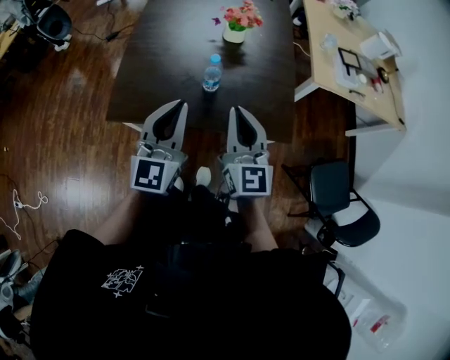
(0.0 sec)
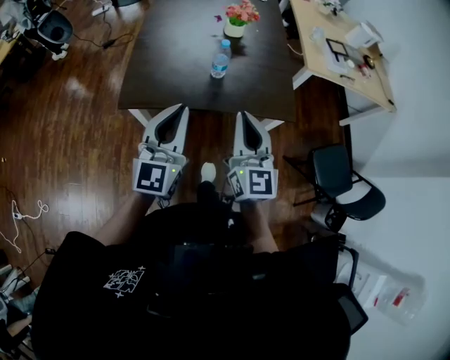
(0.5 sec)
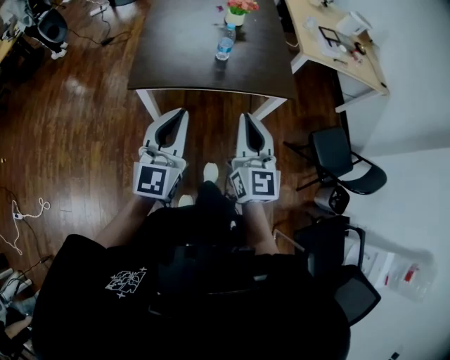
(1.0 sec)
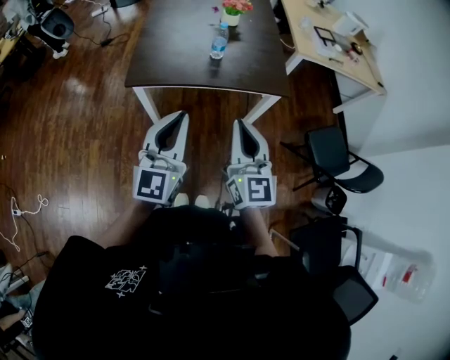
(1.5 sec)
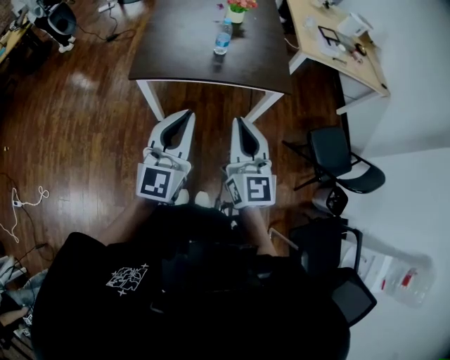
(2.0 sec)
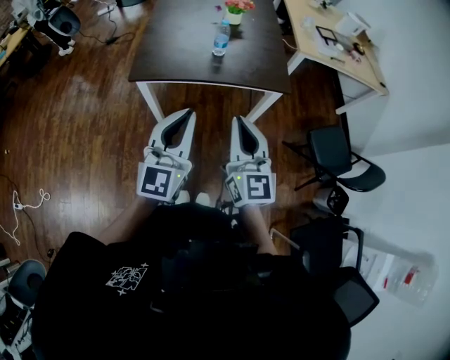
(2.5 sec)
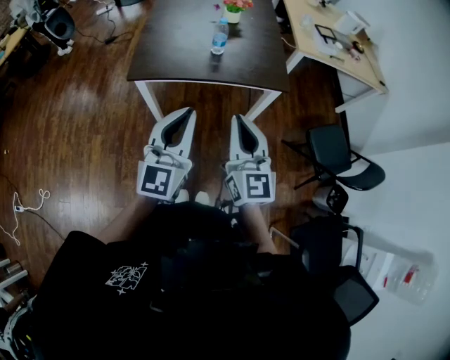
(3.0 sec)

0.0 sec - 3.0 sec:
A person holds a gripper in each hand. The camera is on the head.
0.0 sec - 1.5 sec: The grippers both shift backward by roughly 30 cm.
1.5 sec - 3.0 sec: The grippers move only a little.

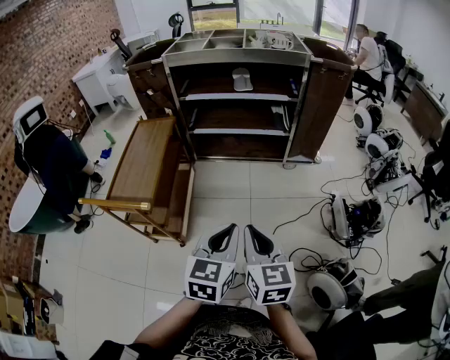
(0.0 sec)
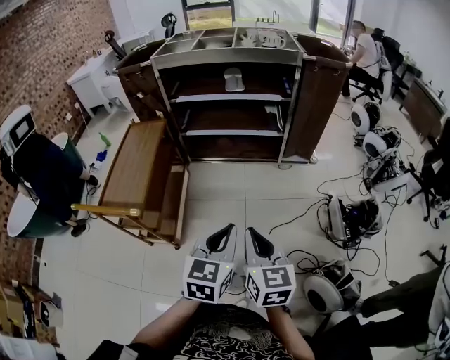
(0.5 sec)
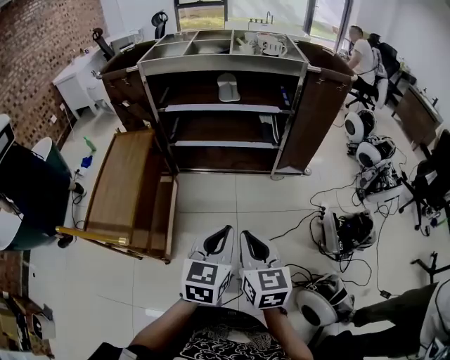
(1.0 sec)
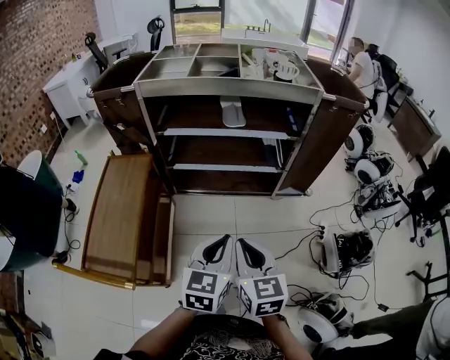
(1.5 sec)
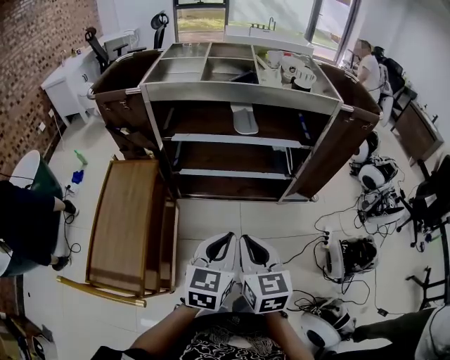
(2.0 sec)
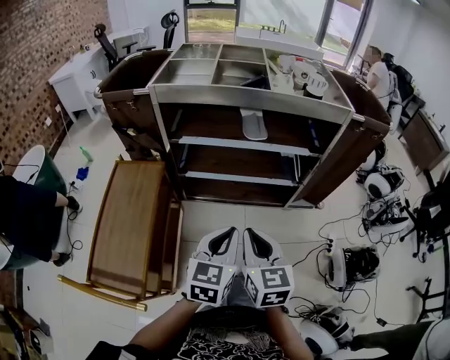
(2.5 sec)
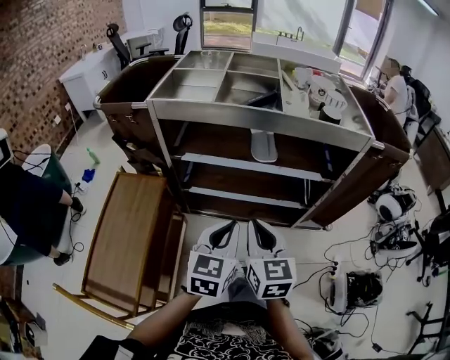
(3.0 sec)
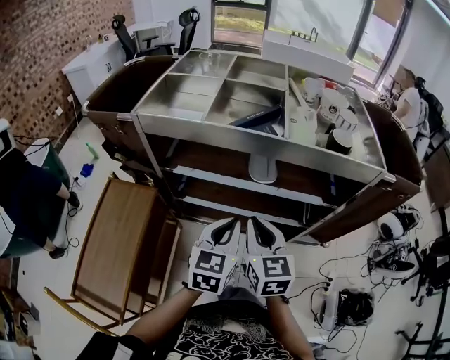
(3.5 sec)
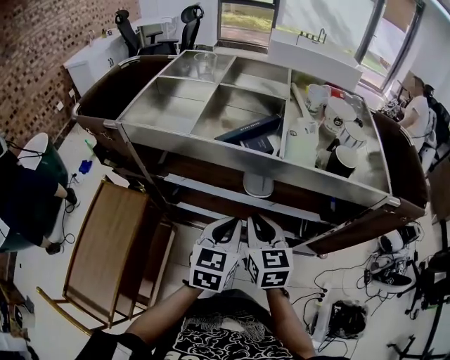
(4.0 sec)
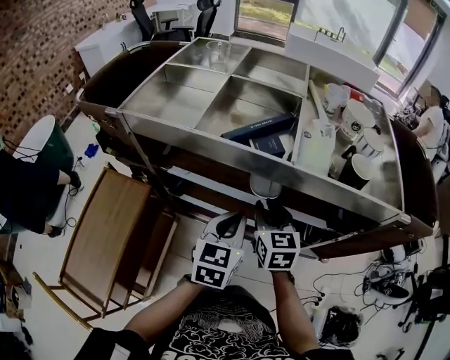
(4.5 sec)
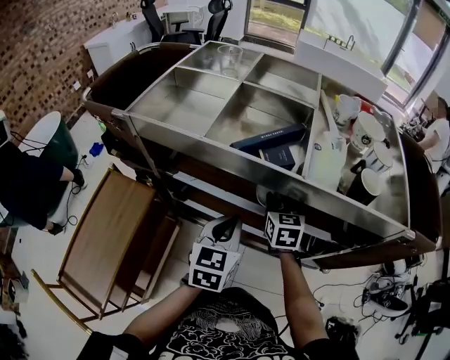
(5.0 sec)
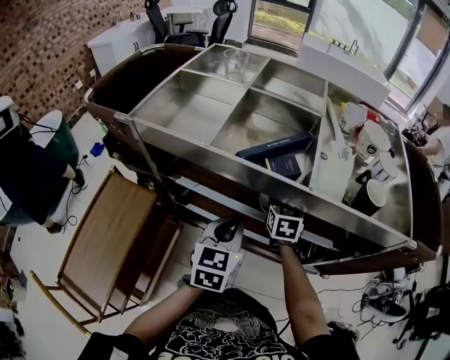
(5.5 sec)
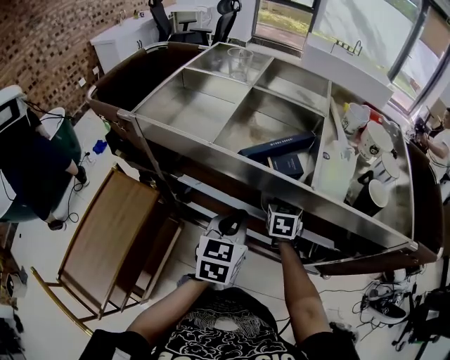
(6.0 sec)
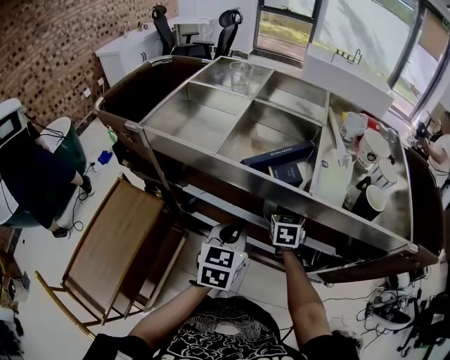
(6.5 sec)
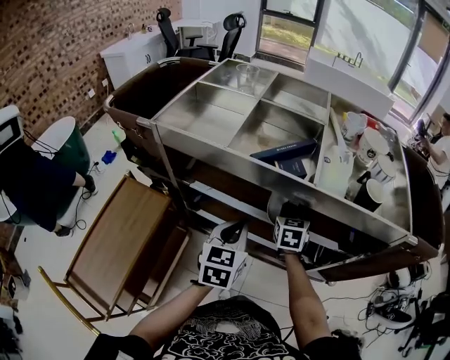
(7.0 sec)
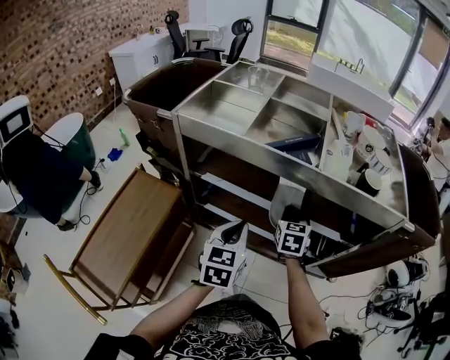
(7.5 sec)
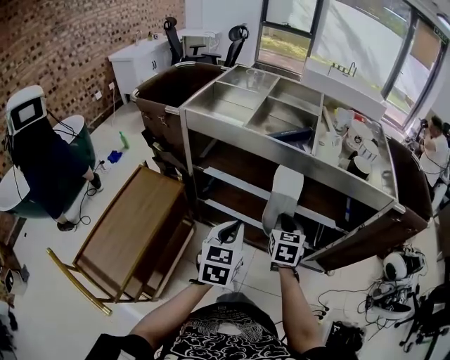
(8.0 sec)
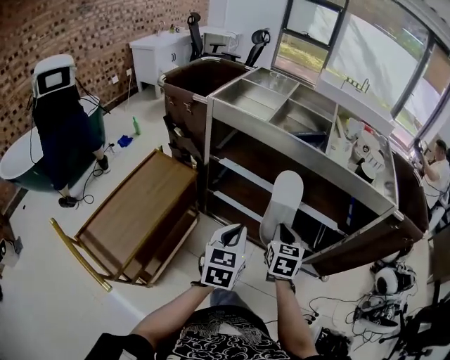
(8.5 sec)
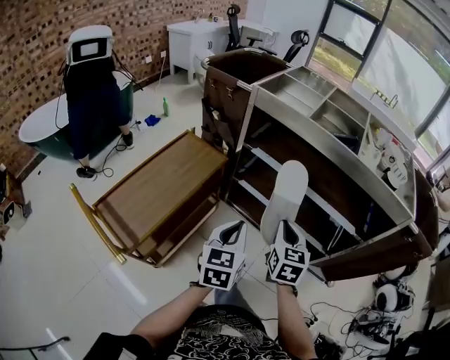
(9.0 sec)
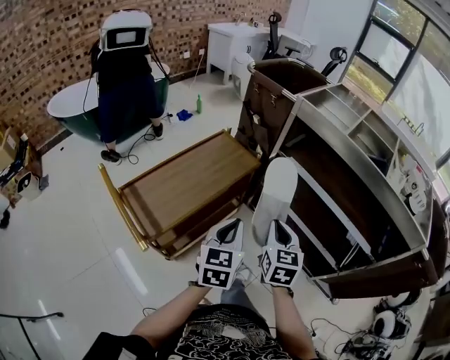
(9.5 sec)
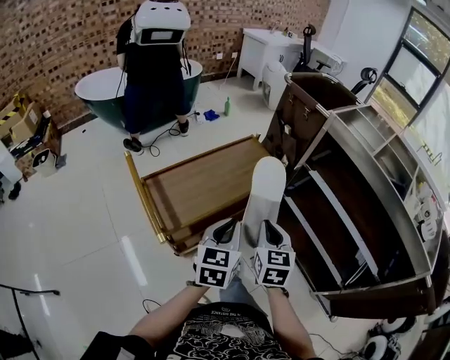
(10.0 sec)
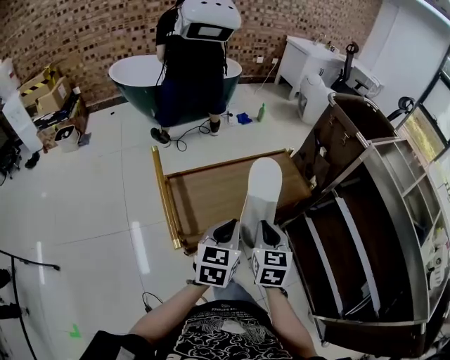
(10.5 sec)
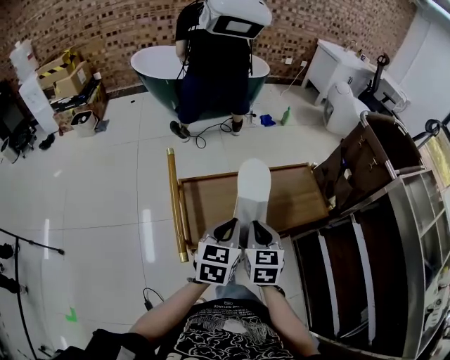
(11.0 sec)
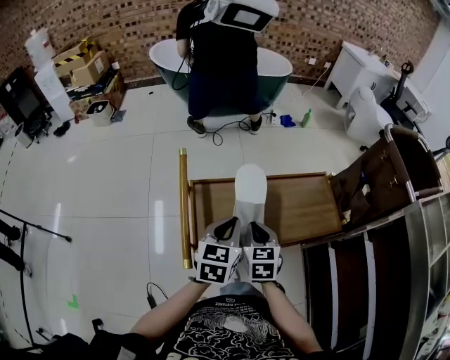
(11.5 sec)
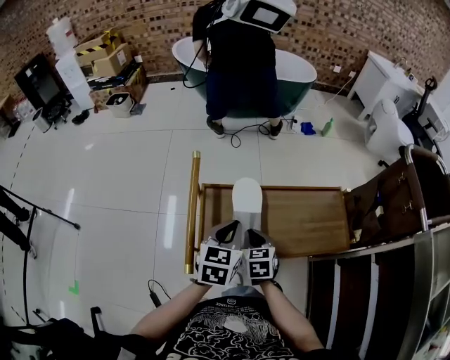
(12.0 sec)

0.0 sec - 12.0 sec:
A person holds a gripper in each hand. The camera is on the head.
0.0 sec - 2.0 sec: The two grippers go approximately 35 cm forward.
2.0 sec - 4.0 sec: Both grippers travel together forward, approximately 35 cm.
4.0 sec - 6.0 sec: The left gripper travels forward by roughly 5 cm. The right gripper heads forward and downward, covering some 25 cm, and opens and closes again.
6.0 sec - 8.0 sec: The two grippers go about 20 cm backward.
8.0 sec - 10.0 sec: The right gripper moves approximately 40 cm, and rotates some 40 degrees, while the left gripper changes place by some 35 cm, and rotates about 40 degrees.
10.0 sec - 12.0 sec: The right gripper changes place by roughly 35 cm, and changes its angle by about 50 degrees, while the left gripper ends up some 25 cm from where it was, and turns by roughly 30 degrees.

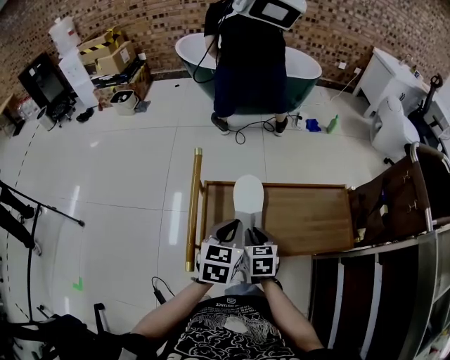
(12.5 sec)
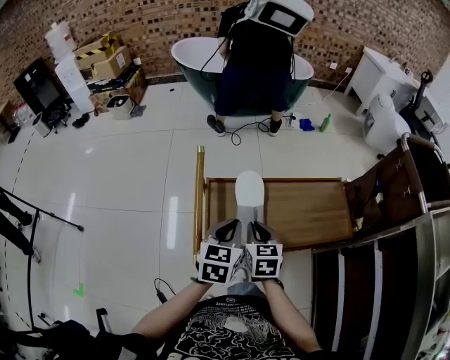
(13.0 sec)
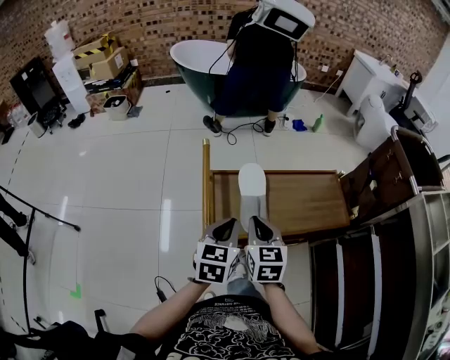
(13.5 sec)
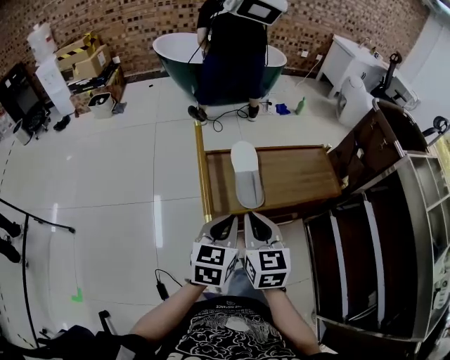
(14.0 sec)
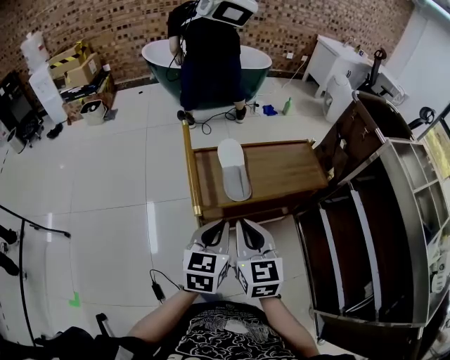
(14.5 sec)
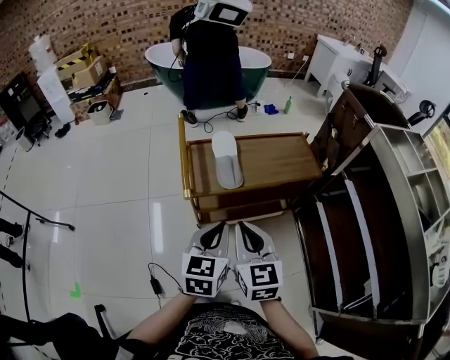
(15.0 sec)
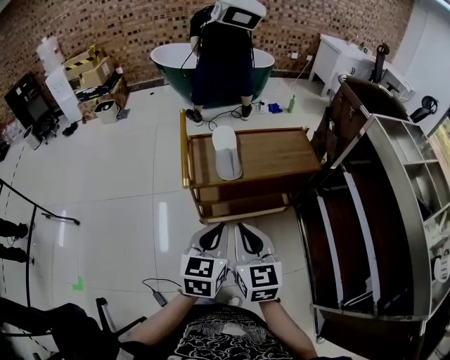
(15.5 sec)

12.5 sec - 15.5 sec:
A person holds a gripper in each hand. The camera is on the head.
12.5 sec - 14.0 sec: The right gripper shifts roughly 25 cm upward and backward, and changes its angle by roughly 20 degrees; the left gripper is displaced backward by about 15 cm.
14.0 sec - 15.5 sec: The two grippers go some 20 cm backward and to the right.

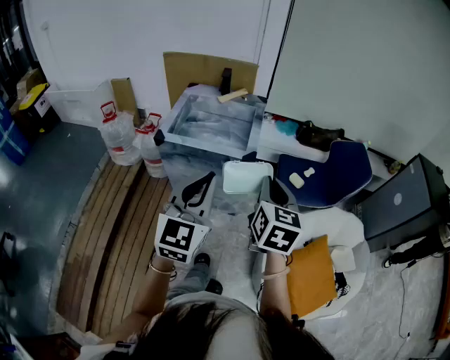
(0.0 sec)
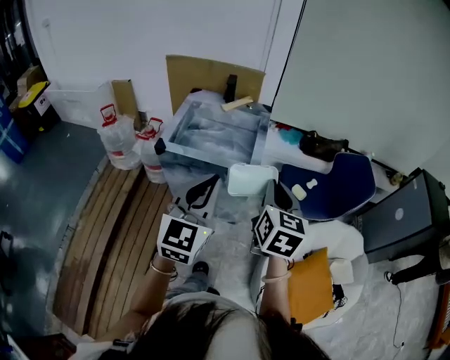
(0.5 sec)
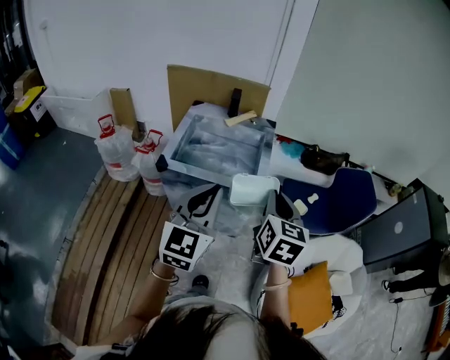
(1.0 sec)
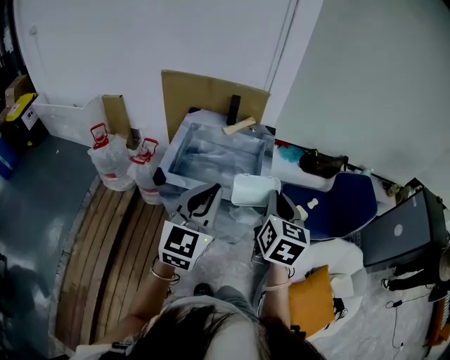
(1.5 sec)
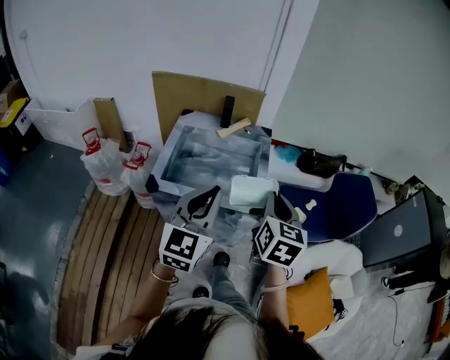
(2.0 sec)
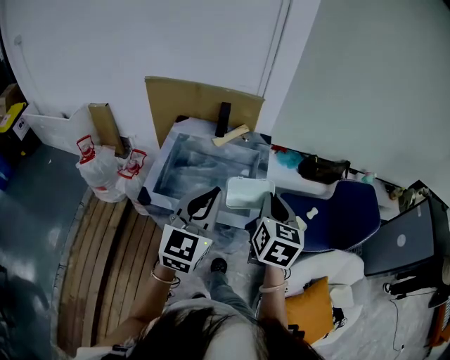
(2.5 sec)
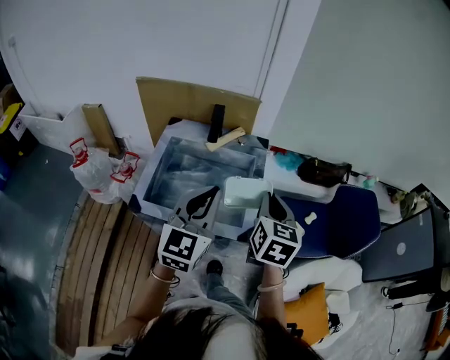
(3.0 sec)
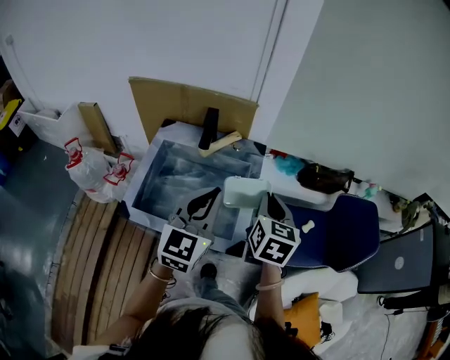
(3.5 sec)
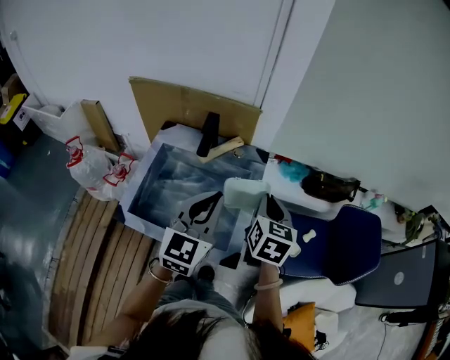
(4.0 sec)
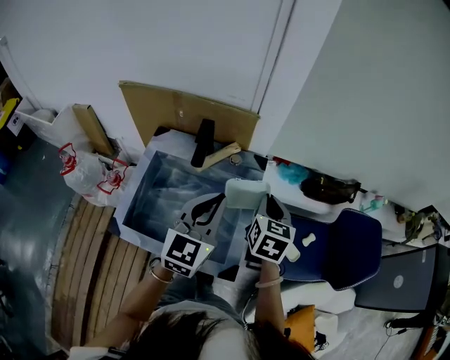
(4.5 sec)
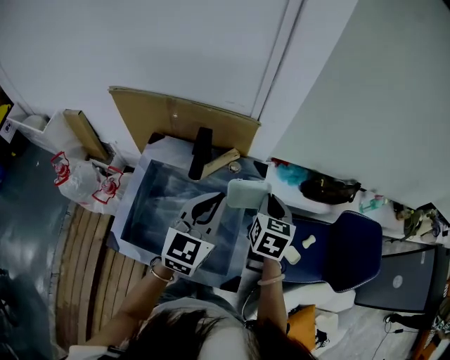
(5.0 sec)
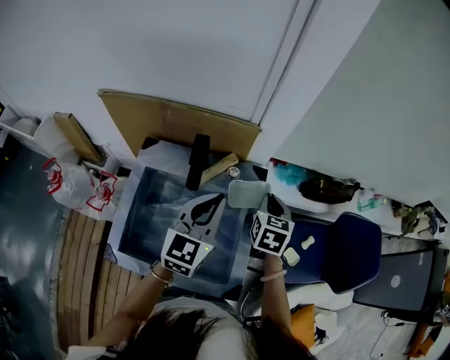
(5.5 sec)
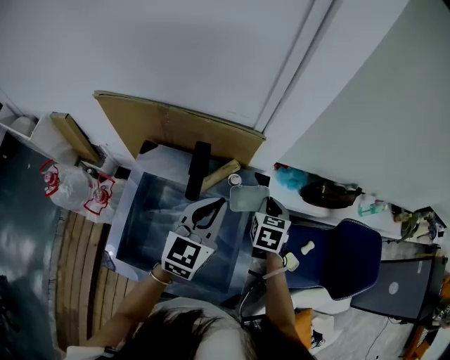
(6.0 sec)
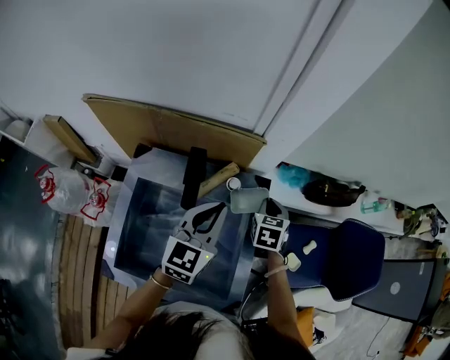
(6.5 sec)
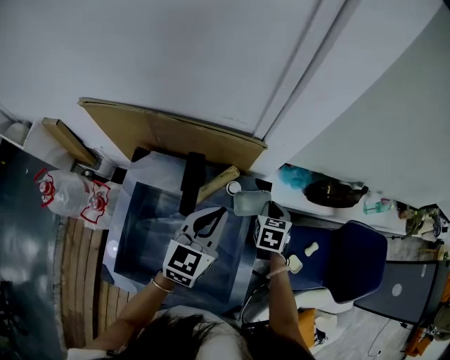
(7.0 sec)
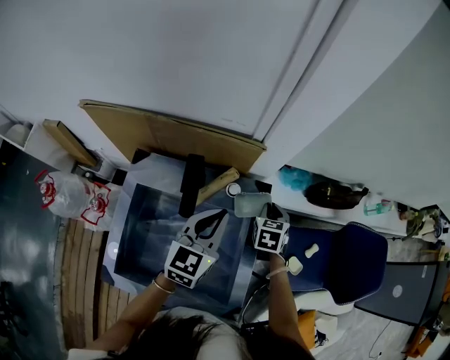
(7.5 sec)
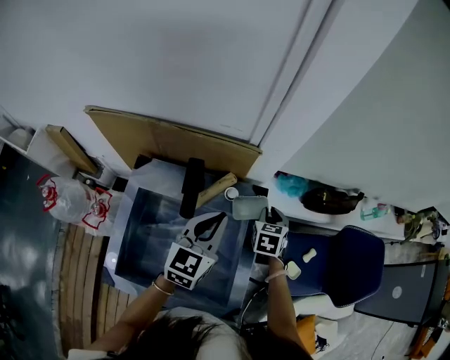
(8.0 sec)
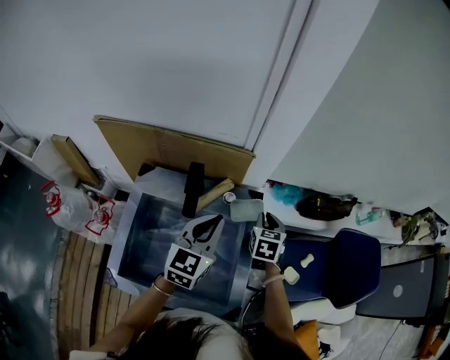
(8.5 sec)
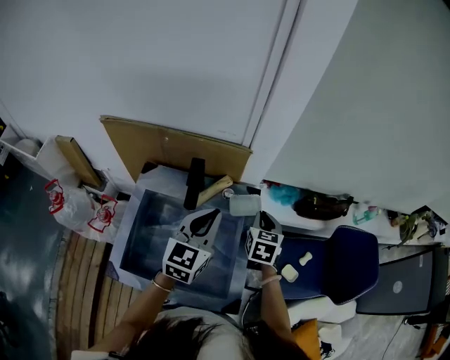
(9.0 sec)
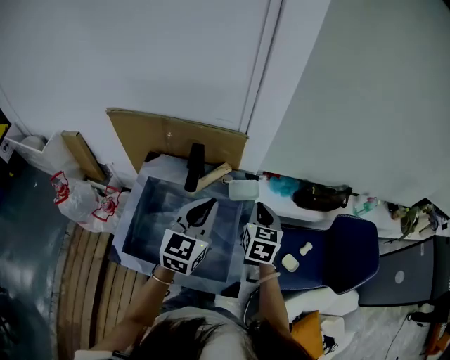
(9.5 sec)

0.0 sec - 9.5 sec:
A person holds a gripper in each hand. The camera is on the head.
0.0 sec - 2.0 sec: Both grippers move forward and to the left, roughly 20 cm.
2.0 sec - 4.0 sec: Both grippers move forward, about 25 cm.
4.0 sec - 5.5 sec: The left gripper shifts some 15 cm forward. The right gripper travels forward and downward by about 15 cm.
5.5 sec - 7.5 sec: The right gripper moves downward and forward, approximately 15 cm, while the left gripper goes some 10 cm downward and forward.
7.5 sec - 9.5 sec: The right gripper heads upward and backward, covering about 20 cm, and changes its angle by approximately 20 degrees; the left gripper heads backward and upward, covering roughly 15 cm.
